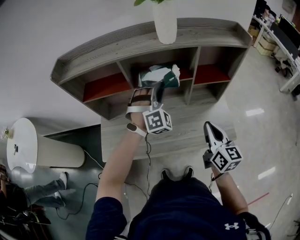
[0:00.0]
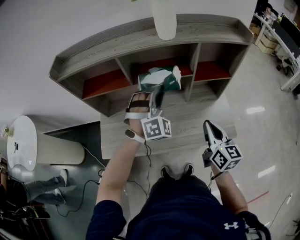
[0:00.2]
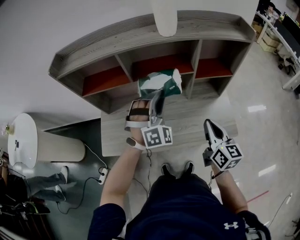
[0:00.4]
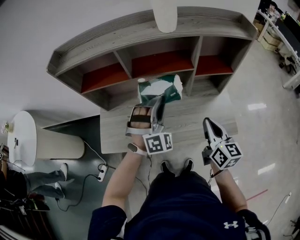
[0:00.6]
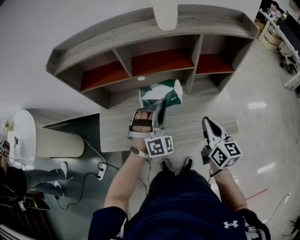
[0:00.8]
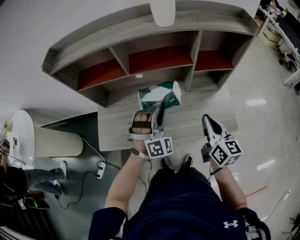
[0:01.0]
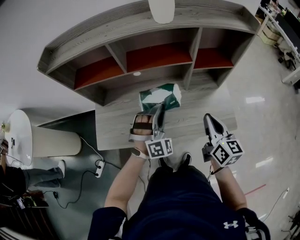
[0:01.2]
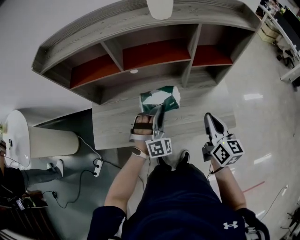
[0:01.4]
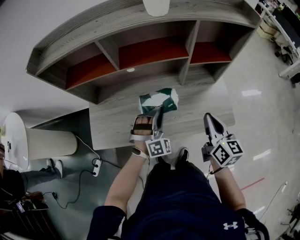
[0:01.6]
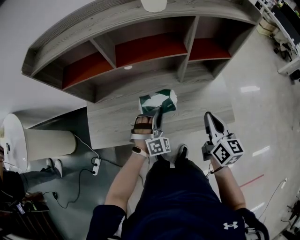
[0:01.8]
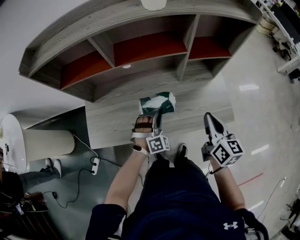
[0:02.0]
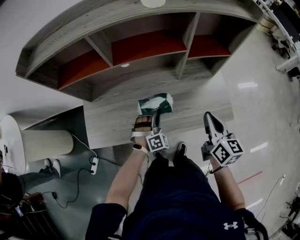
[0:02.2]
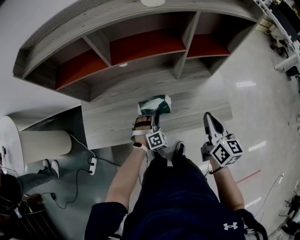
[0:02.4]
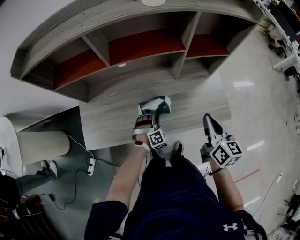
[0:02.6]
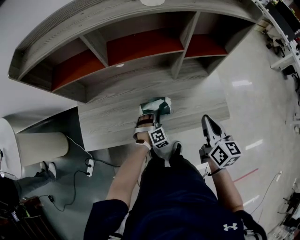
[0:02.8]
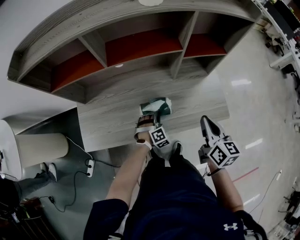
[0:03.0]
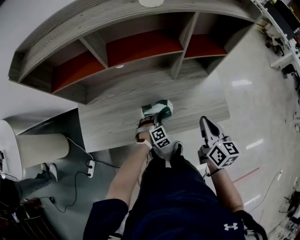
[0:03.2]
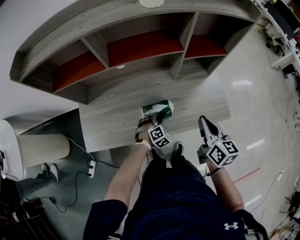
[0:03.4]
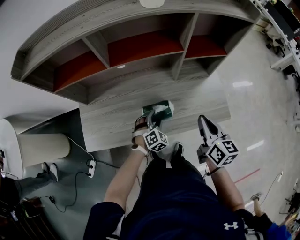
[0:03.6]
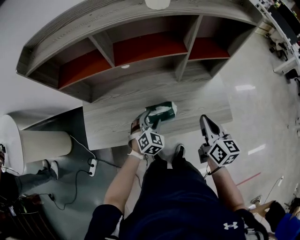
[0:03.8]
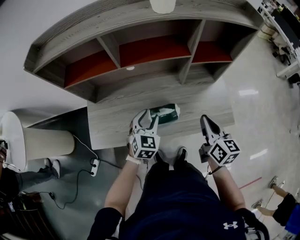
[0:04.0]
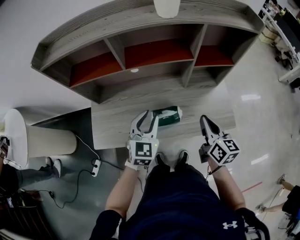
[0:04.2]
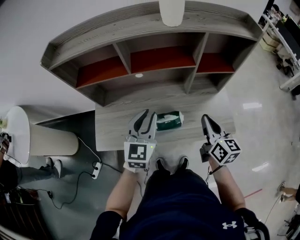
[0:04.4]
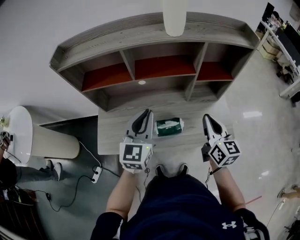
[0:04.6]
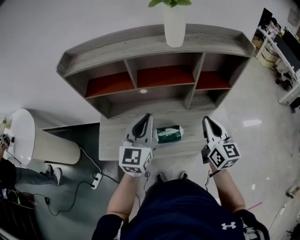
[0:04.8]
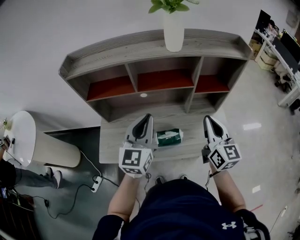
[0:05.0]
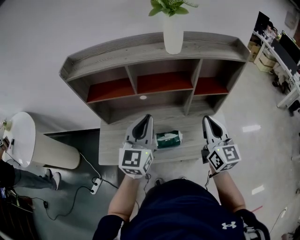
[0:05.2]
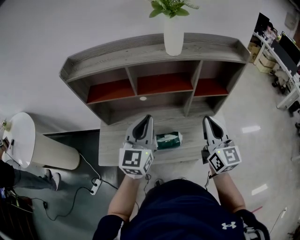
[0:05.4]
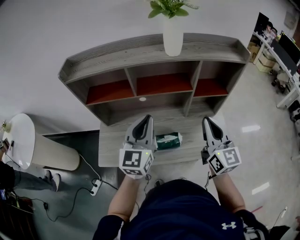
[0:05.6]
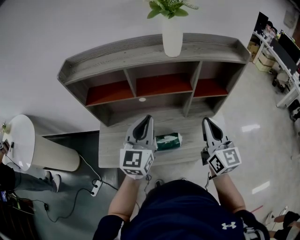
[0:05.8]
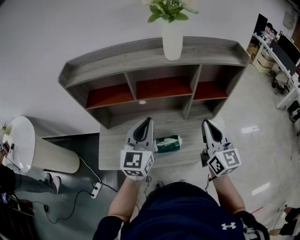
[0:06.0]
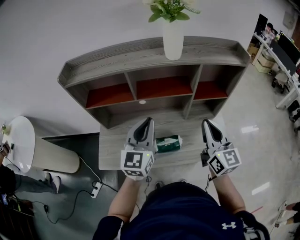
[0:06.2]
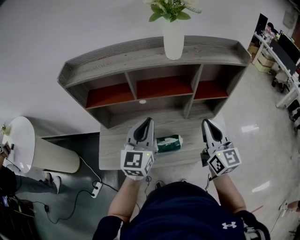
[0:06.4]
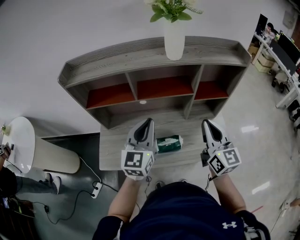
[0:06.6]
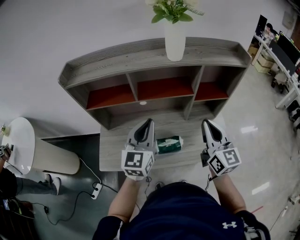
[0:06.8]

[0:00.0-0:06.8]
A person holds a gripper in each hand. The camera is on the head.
0:00.0 to 0:01.4: The left gripper heads downward and backward, covering approximately 20 cm.
0:01.4 to 0:02.8: The left gripper goes some 20 cm downward, and swivels approximately 30 degrees.
0:02.8 to 0:04.0: The left gripper heads upward, covering roughly 15 cm, twists about 40 degrees counterclockwise, seen from behind, and opens its fingers.
0:04.0 to 0:05.4: The grippers both shift upward by roughly 20 cm. The right gripper changes its angle by some 30 degrees, while the left gripper tilts its fingers roughly 30 degrees upward, and closes.
0:05.4 to 0:06.8: There are only small adjustments of the grippers.

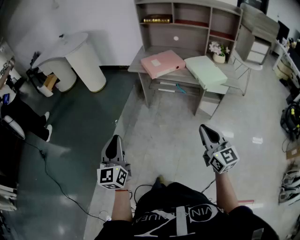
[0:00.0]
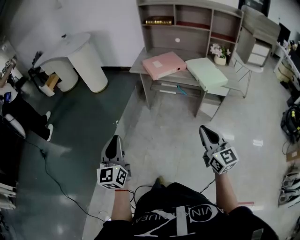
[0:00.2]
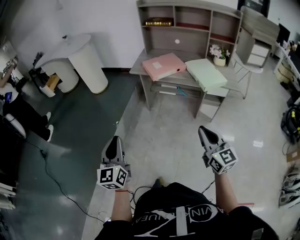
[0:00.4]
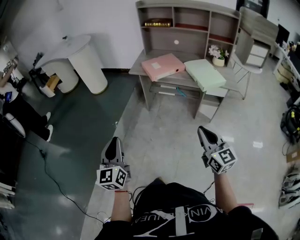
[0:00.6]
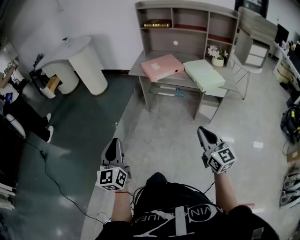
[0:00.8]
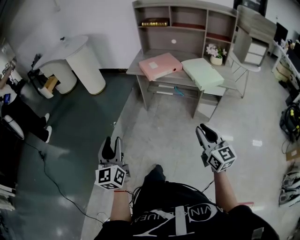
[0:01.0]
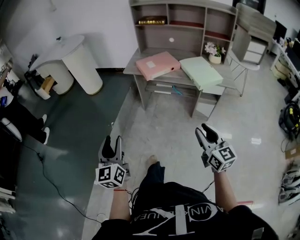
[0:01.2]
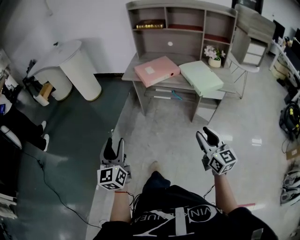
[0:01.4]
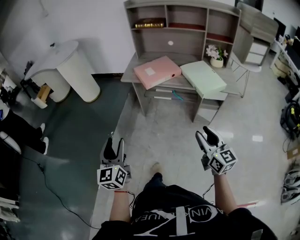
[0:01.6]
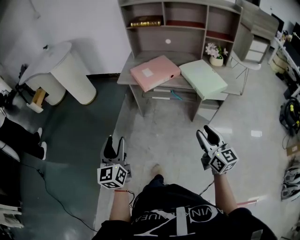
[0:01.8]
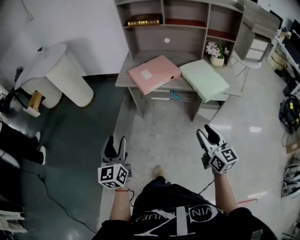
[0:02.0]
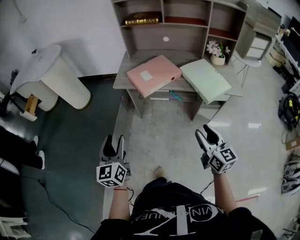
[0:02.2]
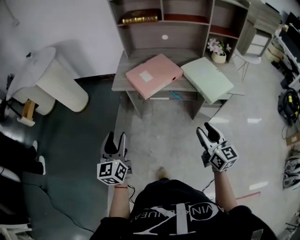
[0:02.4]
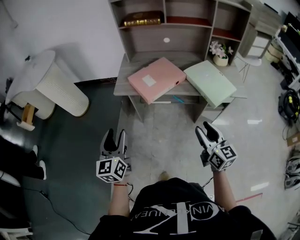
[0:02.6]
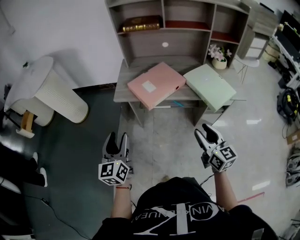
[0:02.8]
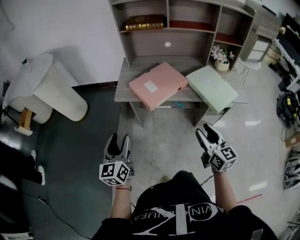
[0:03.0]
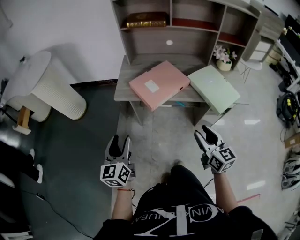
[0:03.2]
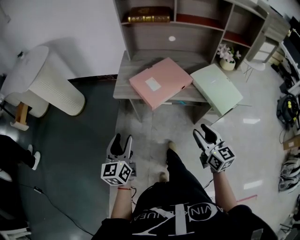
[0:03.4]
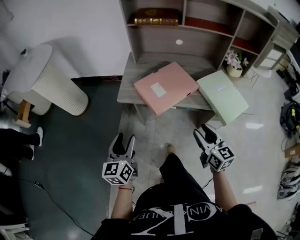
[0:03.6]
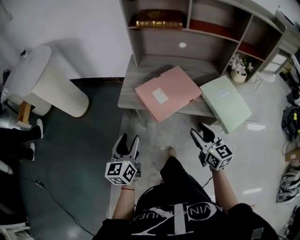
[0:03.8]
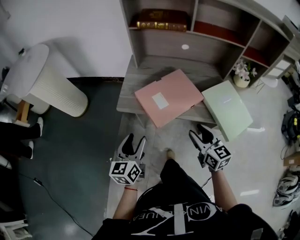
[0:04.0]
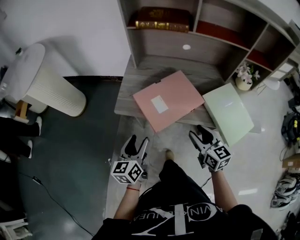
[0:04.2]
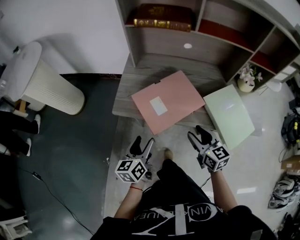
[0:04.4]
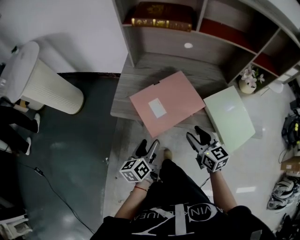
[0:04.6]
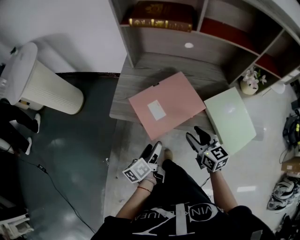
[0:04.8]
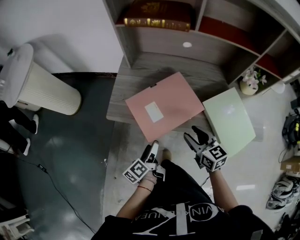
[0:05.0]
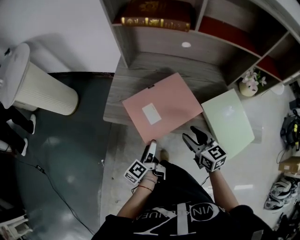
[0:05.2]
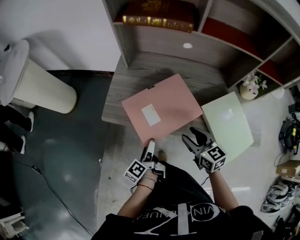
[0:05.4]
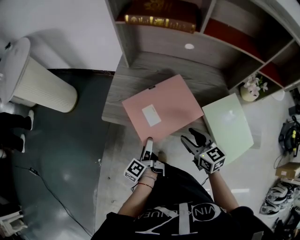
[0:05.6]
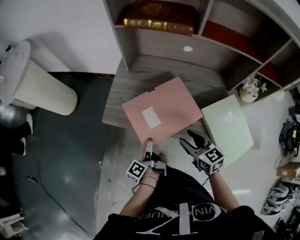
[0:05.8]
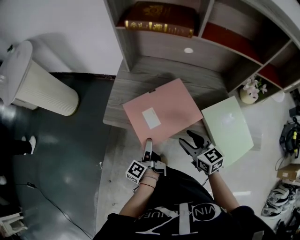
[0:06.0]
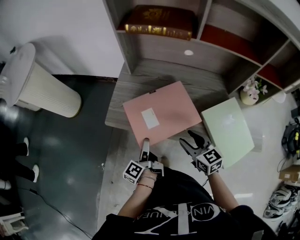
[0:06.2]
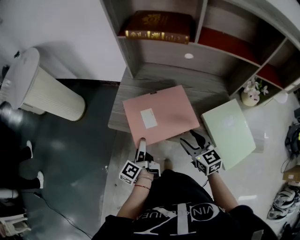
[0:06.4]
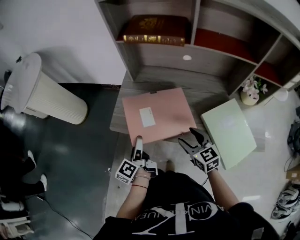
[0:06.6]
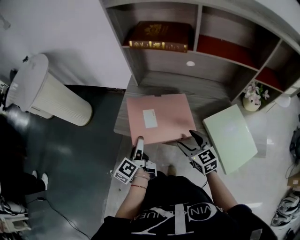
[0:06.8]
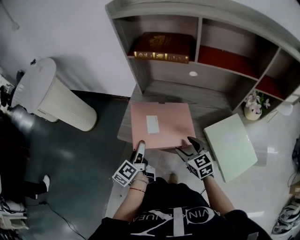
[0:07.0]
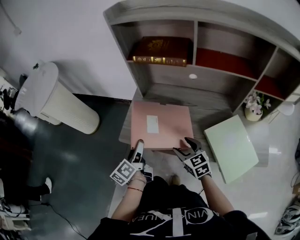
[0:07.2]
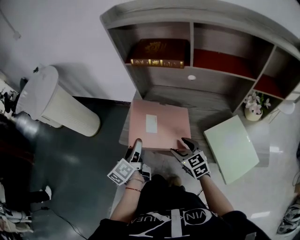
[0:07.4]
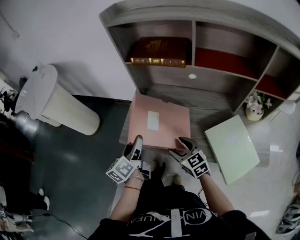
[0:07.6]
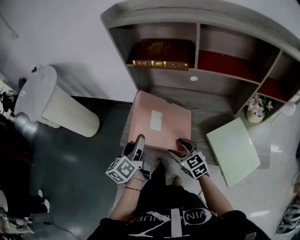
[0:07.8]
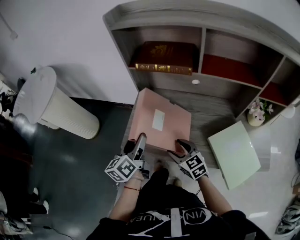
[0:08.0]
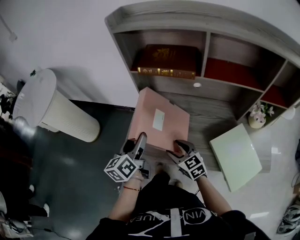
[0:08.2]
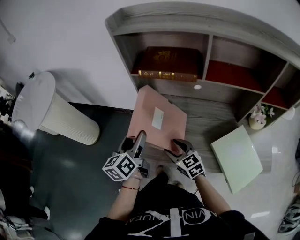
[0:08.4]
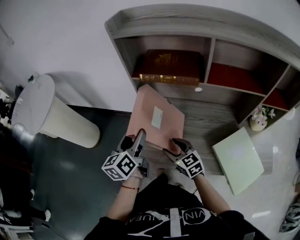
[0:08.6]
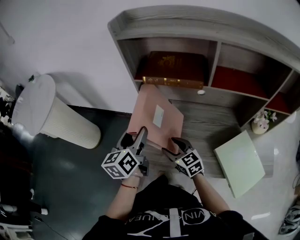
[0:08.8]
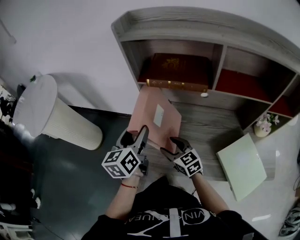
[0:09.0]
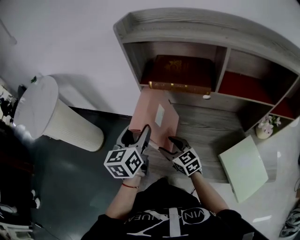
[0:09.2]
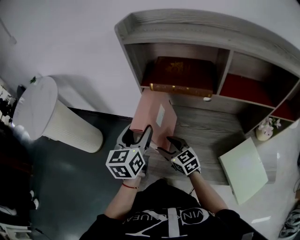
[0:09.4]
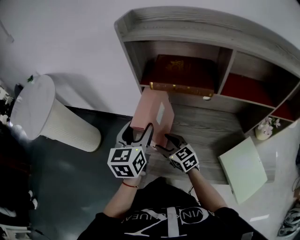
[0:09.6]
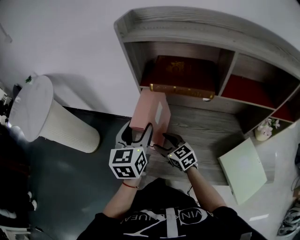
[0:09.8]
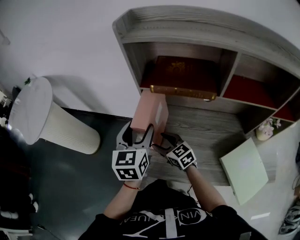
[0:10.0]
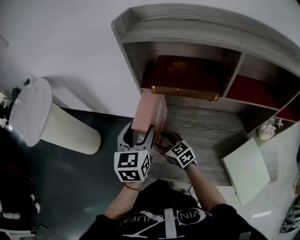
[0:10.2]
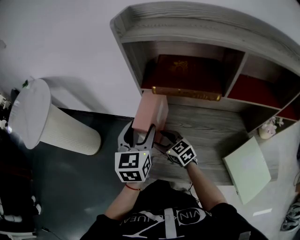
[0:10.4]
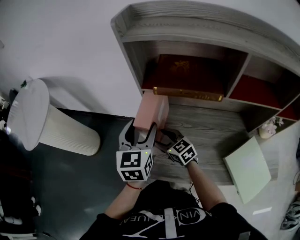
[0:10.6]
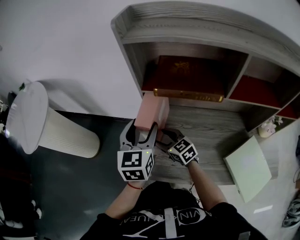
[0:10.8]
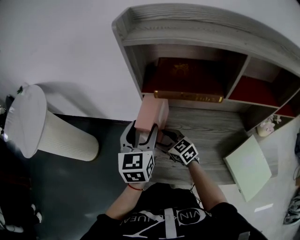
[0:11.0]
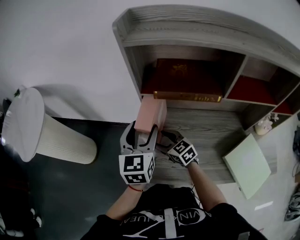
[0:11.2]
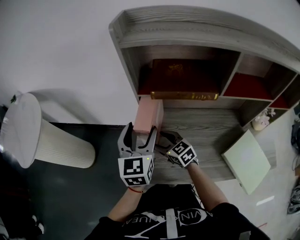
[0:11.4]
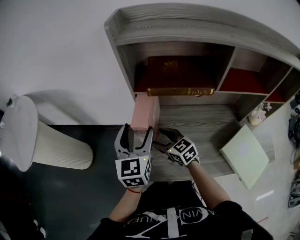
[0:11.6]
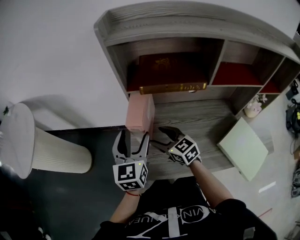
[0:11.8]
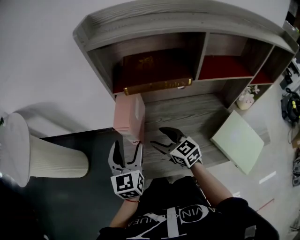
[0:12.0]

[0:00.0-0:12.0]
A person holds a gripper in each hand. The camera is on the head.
0:00.0 to 0:01.6: The grippers both shift forward by some 10 cm. The right gripper opens up, while the left gripper opens up.
0:01.6 to 0:03.0: The grippers both shift forward by about 25 cm.
0:03.0 to 0:04.4: The right gripper shifts about 25 cm forward, while the left gripper travels forward, to the right and downward by about 25 cm, and swivels roughly 30 degrees.
0:04.4 to 0:06.0: The right gripper goes roughly 5 cm forward, while the left gripper is displaced downward by about 10 cm, and rolls counterclockwise, seen from behind, by roughly 50 degrees.
0:06.0 to 0:07.6: The left gripper is displaced upward and forward by roughly 20 cm, and rotates around the line of its fingers by some 40 degrees, clockwise from behind; the right gripper shifts some 5 cm forward.
0:07.6 to 0:09.0: The left gripper goes approximately 20 cm forward and upward, and rotates approximately 20 degrees. Meanwhile the right gripper travels forward and to the left by approximately 15 cm.
0:09.0 to 0:10.4: The left gripper is displaced forward by about 5 cm, and turns by some 20 degrees; the right gripper shifts roughly 10 cm forward.
0:10.4 to 0:12.0: The right gripper goes about 5 cm to the right. Meanwhile the left gripper shifts by some 5 cm.

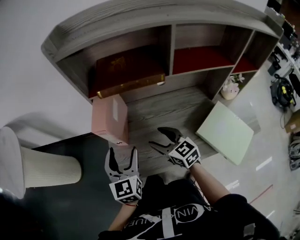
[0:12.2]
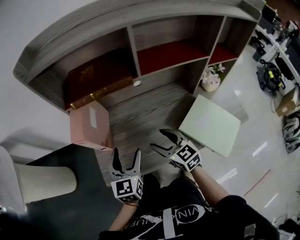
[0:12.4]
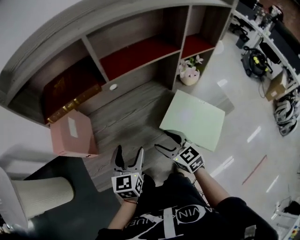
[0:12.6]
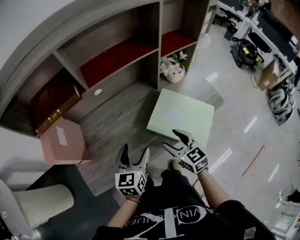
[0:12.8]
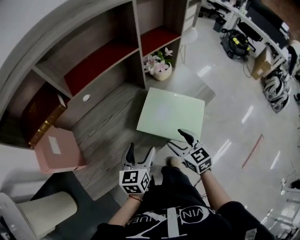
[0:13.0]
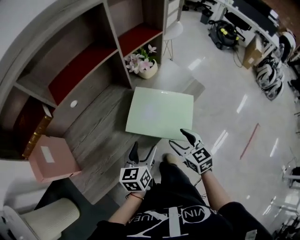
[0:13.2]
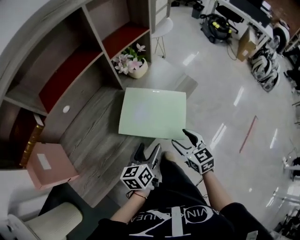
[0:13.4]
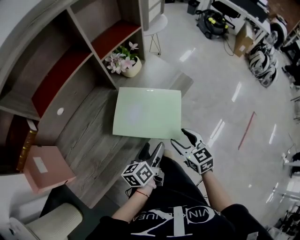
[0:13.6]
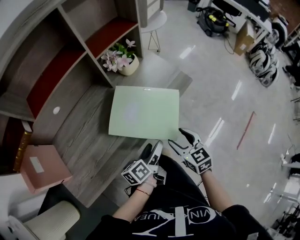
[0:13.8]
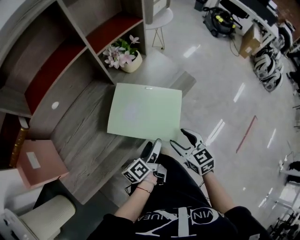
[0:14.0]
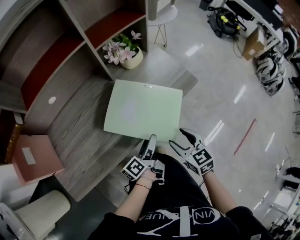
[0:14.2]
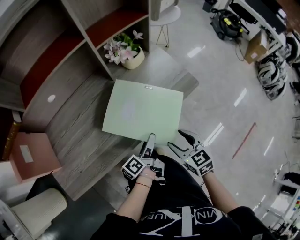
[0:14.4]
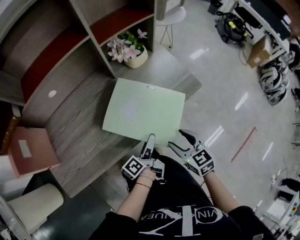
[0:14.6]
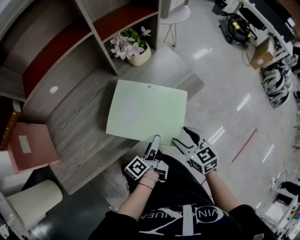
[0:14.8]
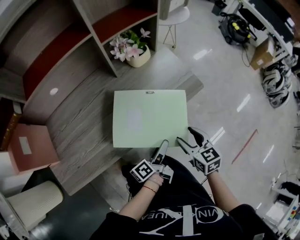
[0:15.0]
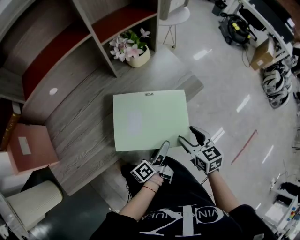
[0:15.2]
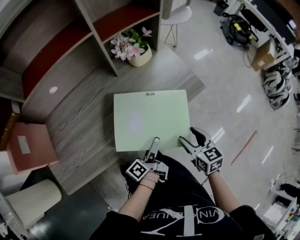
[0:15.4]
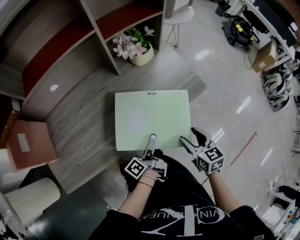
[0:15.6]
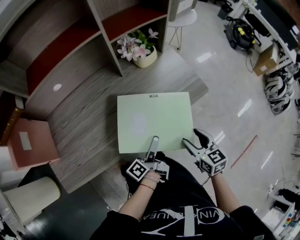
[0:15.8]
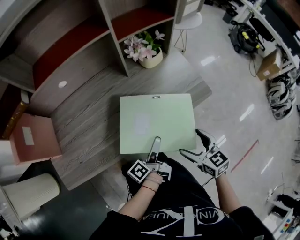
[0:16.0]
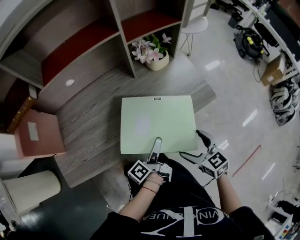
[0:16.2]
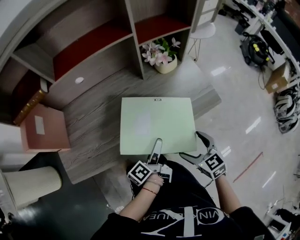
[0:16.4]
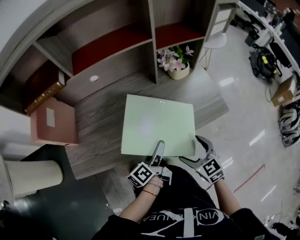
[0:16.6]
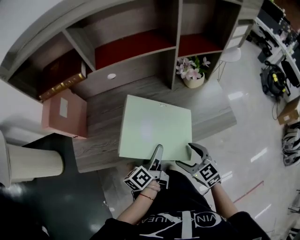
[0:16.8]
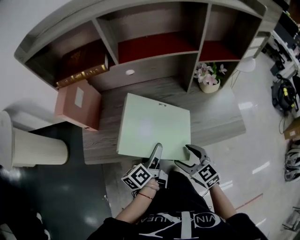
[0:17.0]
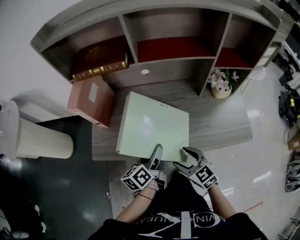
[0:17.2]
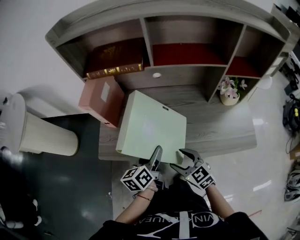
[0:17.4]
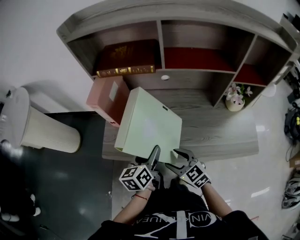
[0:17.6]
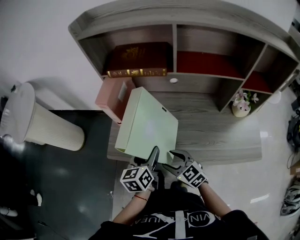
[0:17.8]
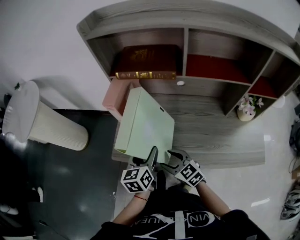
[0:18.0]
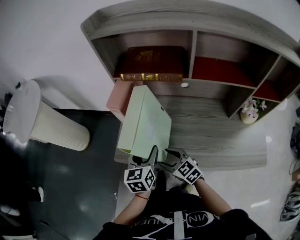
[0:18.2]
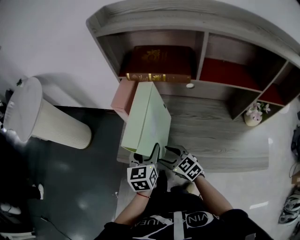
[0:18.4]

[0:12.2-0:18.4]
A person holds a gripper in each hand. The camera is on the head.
0:12.2 to 0:13.8: The pair of grippers is taken approximately 50 cm. The right gripper changes its angle by roughly 50 degrees, while the left gripper turns by approximately 80 degrees.
0:13.8 to 0:15.4: The right gripper moves to the right, about 5 cm, while the left gripper moves downward, some 5 cm, and swivels about 30 degrees.
0:15.4 to 0:16.8: The right gripper shifts some 15 cm to the left, and rotates about 40 degrees. Meanwhile the left gripper is displaced to the left and upward by approximately 20 cm, and swivels approximately 30 degrees.
0:16.8 to 0:18.4: The right gripper ends up approximately 35 cm from where it was, and turns by approximately 40 degrees. The left gripper changes place by some 30 cm, and swivels about 50 degrees.
